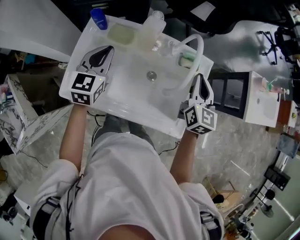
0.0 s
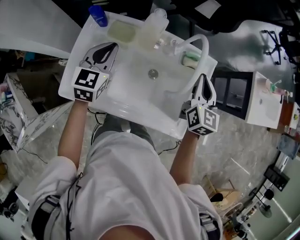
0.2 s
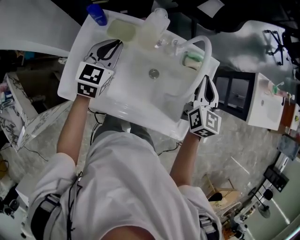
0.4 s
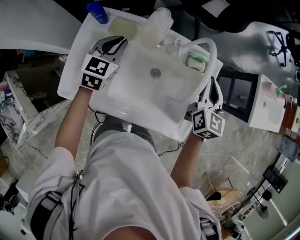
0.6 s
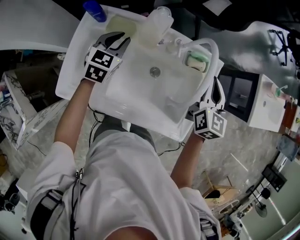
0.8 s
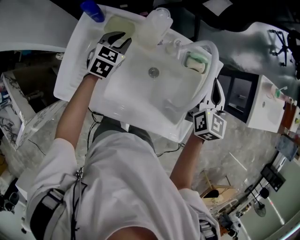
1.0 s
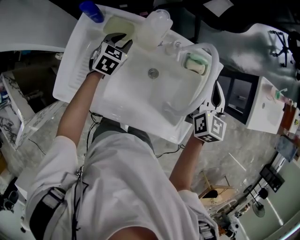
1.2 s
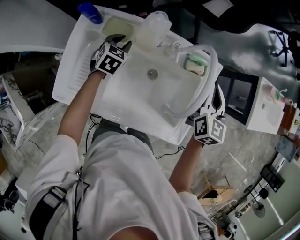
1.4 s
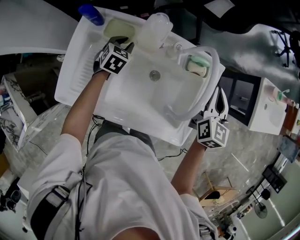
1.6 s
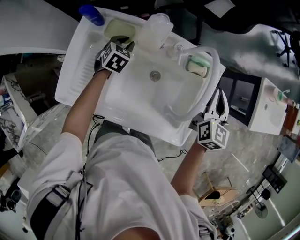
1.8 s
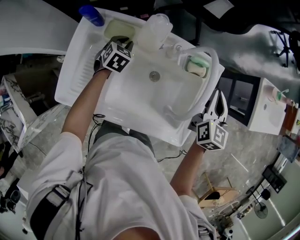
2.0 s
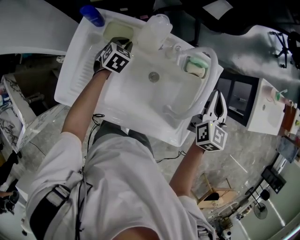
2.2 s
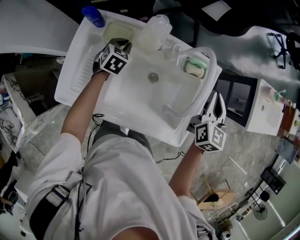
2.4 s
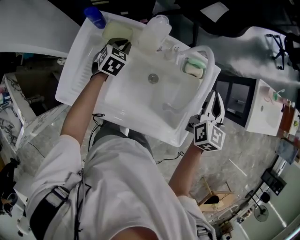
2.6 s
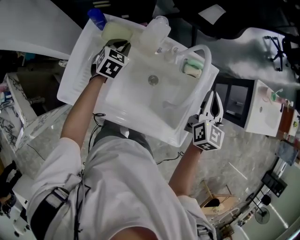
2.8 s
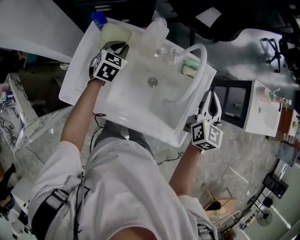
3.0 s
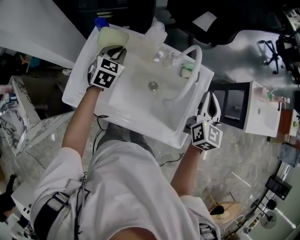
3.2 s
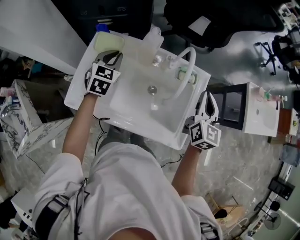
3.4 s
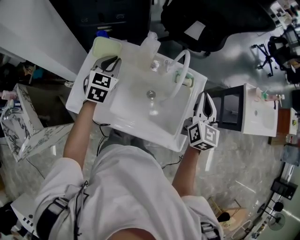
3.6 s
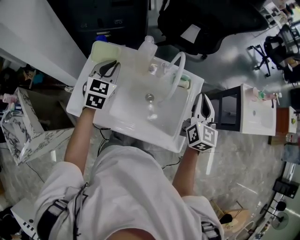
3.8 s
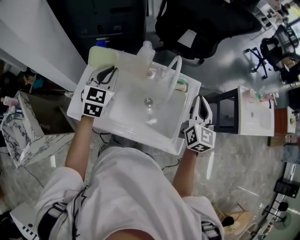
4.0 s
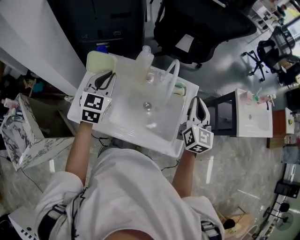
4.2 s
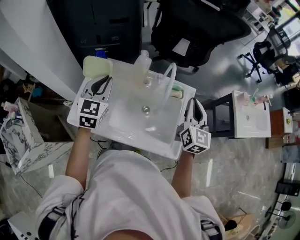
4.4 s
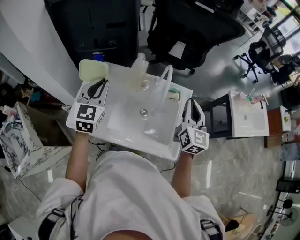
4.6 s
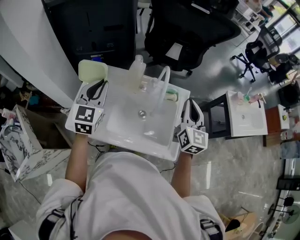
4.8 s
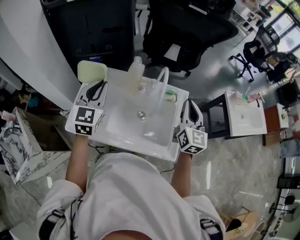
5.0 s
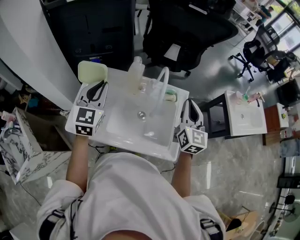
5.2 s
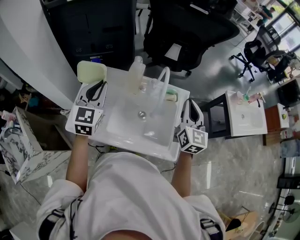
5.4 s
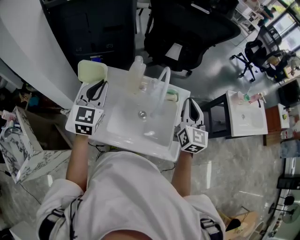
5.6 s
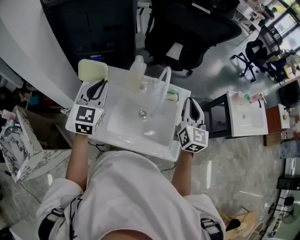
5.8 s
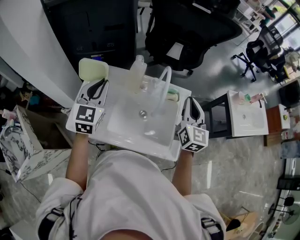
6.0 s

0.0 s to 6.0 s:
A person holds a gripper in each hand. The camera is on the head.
0.0 to 1.6 s: The right gripper ends up roughly 10 cm from where it was; the left gripper shifts approximately 25 cm downward and forward, rotates approximately 30 degrees, and opens up.
1.6 to 3.0 s: The right gripper moves approximately 5 cm. The left gripper is displaced upward by about 10 cm.
3.0 to 4.4 s: The left gripper goes about 25 cm upward and backward, and changes its angle by roughly 20 degrees; the right gripper heads upward, covering some 10 cm.
4.4 to 6.0 s: The grippers stay close to where they were, moving slightly.

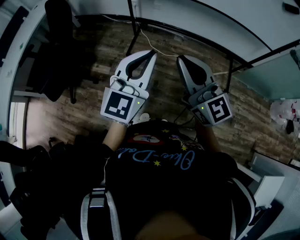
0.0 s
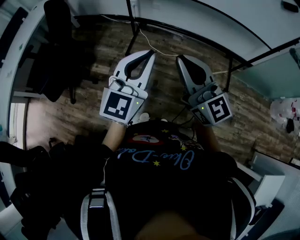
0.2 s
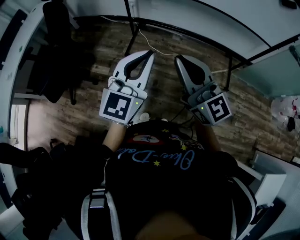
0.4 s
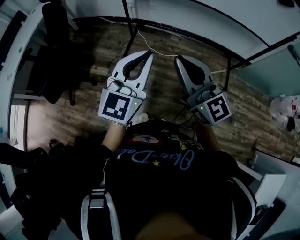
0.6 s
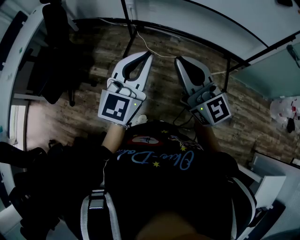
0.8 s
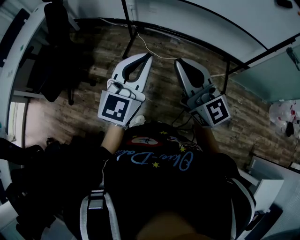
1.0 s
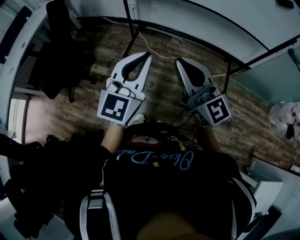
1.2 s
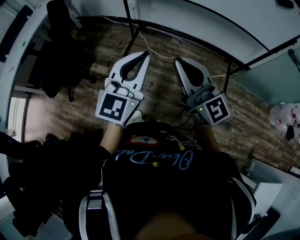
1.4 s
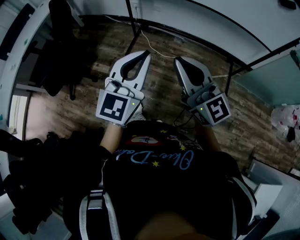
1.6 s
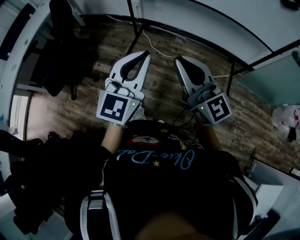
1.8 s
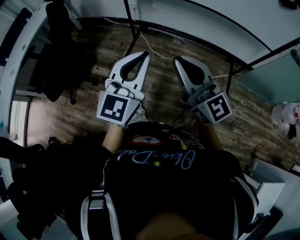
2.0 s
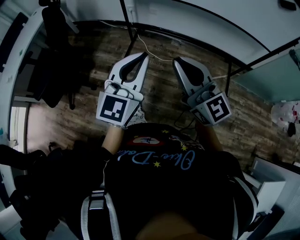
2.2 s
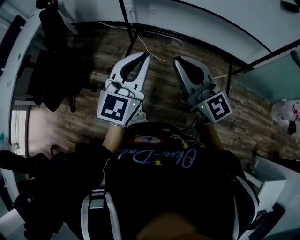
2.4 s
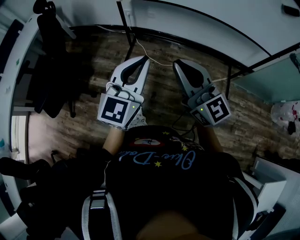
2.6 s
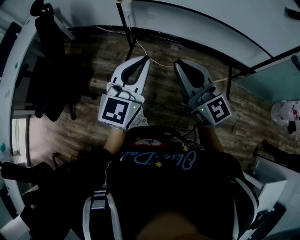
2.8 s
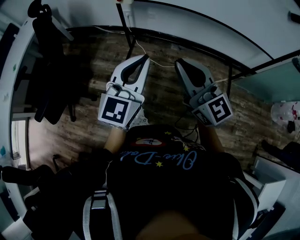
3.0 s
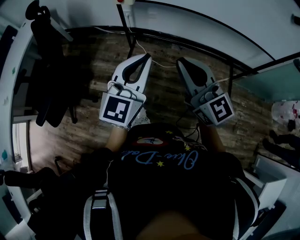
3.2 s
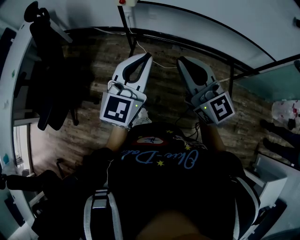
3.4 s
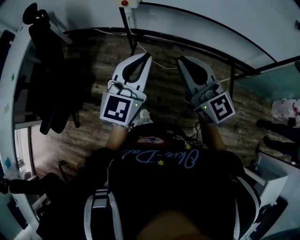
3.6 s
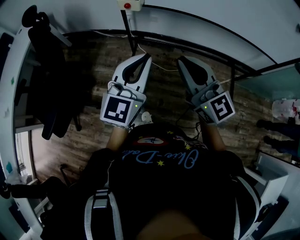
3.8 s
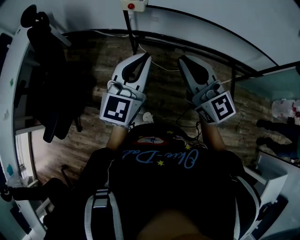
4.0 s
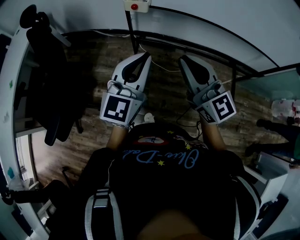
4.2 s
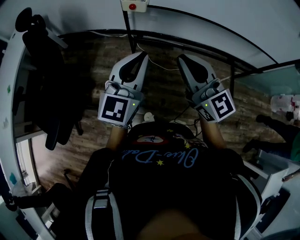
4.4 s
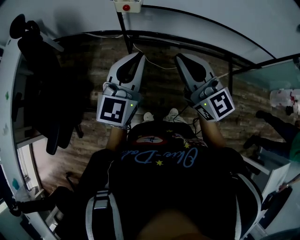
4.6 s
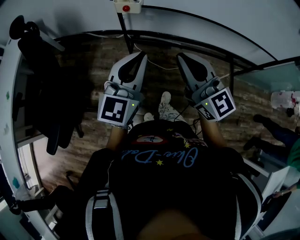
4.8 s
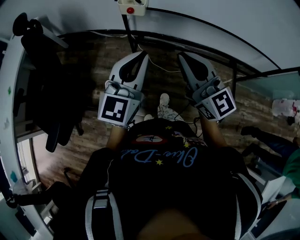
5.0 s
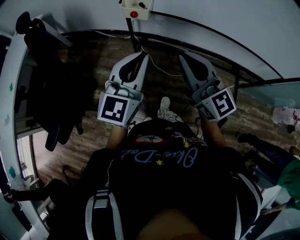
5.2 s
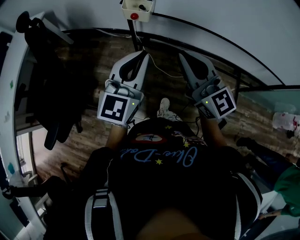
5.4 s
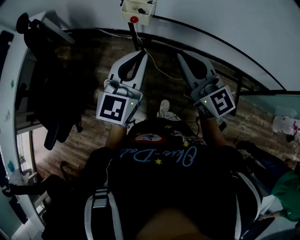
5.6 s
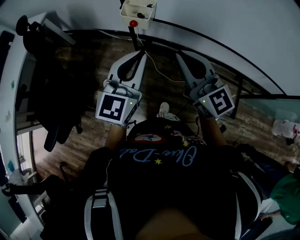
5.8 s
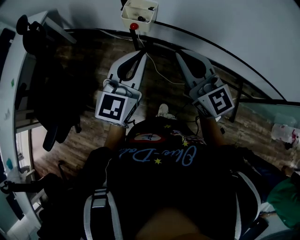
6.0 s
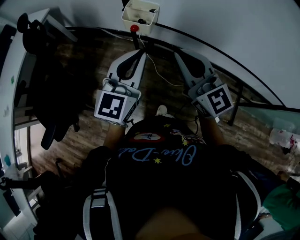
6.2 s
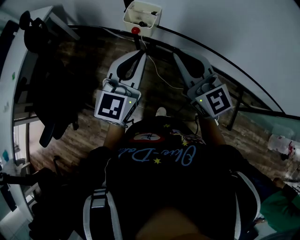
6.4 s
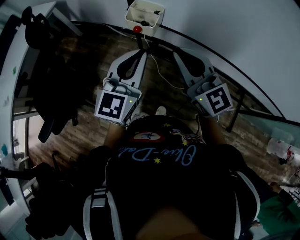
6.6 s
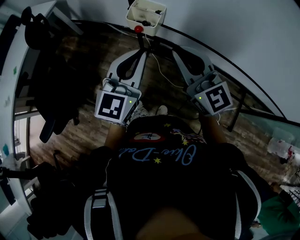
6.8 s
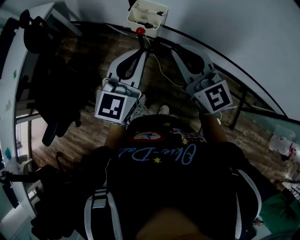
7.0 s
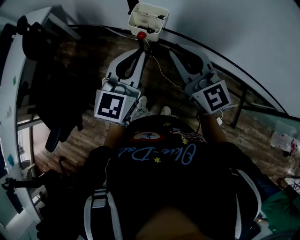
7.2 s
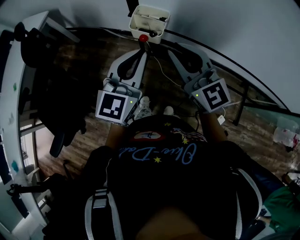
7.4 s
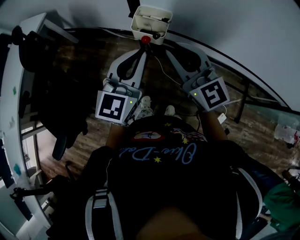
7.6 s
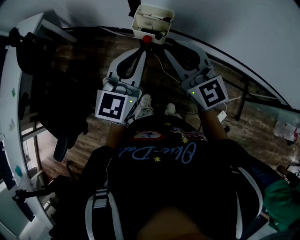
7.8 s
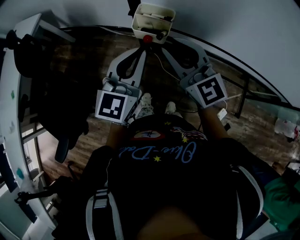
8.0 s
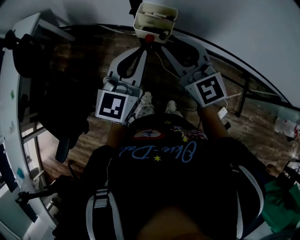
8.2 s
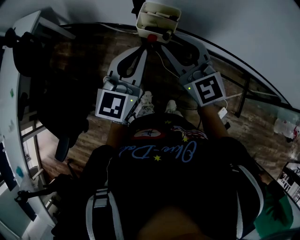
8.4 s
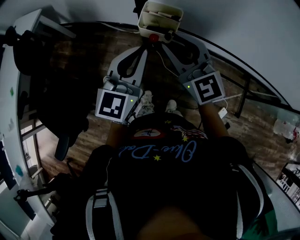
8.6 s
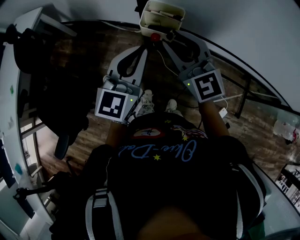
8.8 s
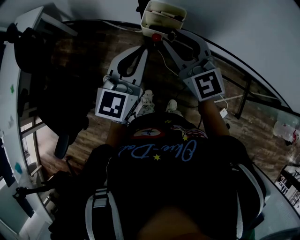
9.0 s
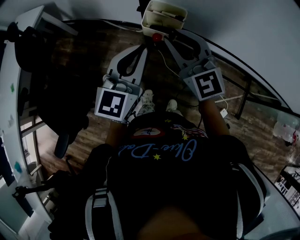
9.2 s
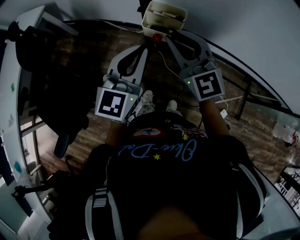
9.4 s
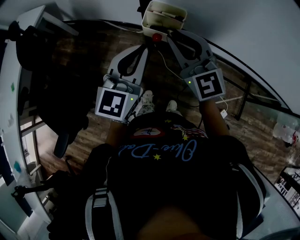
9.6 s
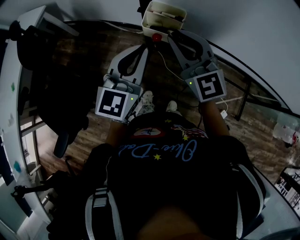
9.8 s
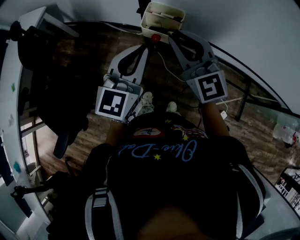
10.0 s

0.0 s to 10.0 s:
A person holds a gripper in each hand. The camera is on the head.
0.0 to 1.4 s: Both grippers move to the right, approximately 5 cm.
1.4 to 2.8 s: Both grippers travel together forward, some 10 cm.
2.8 to 4.2 s: Both grippers move forward and to the left, roughly 15 cm.
4.2 to 5.8 s: The grippers both shift forward by some 15 cm.
5.8 to 7.2 s: Both grippers travel together forward, some 10 cm.
7.2 to 8.6 s: The left gripper moves roughly 5 cm. Meanwhile the right gripper is displaced forward and to the left by about 10 cm.
8.6 to 10.0 s: The grippers stay close to where they were, moving slightly.

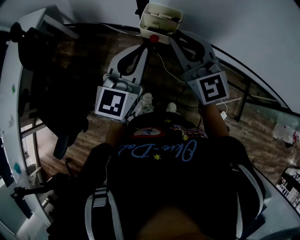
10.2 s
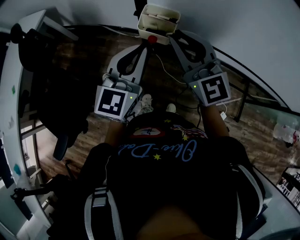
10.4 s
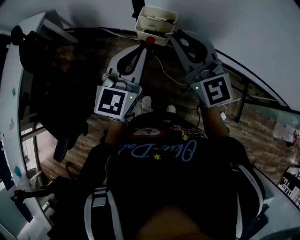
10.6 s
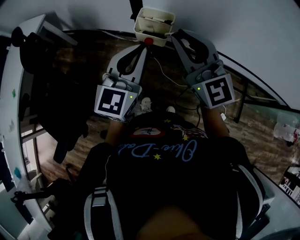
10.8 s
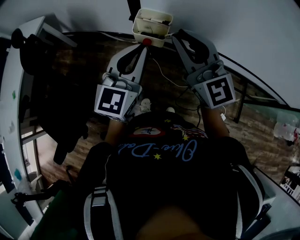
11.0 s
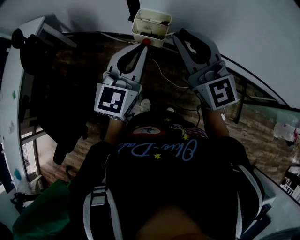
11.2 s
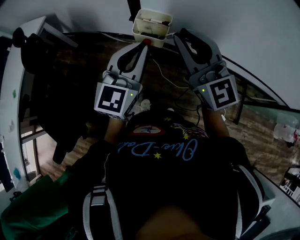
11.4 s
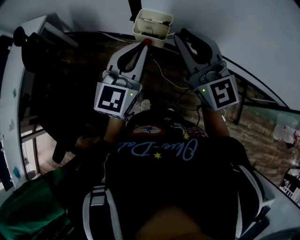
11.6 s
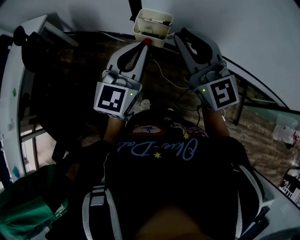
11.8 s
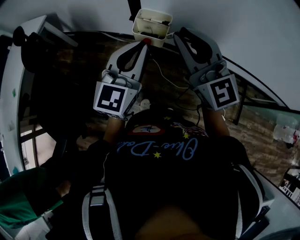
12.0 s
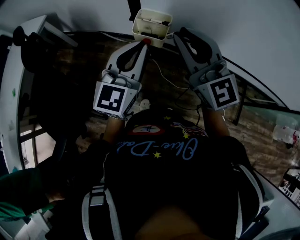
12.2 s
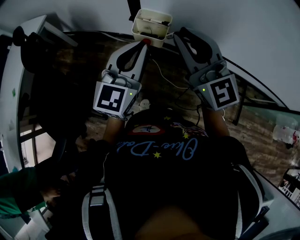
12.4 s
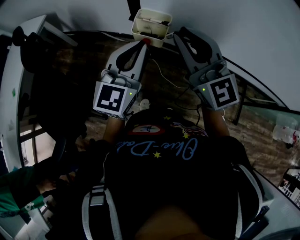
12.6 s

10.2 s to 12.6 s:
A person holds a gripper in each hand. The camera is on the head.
10.2 to 11.4 s: The right gripper goes some 5 cm upward.
11.4 to 12.6 s: Both grippers stay about where they are.

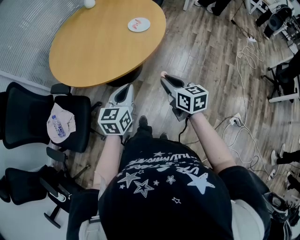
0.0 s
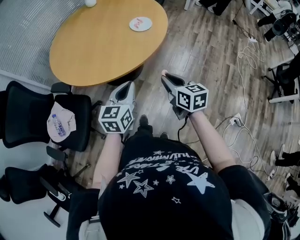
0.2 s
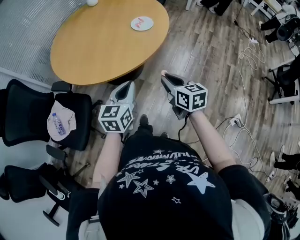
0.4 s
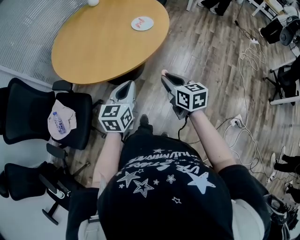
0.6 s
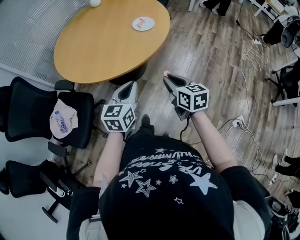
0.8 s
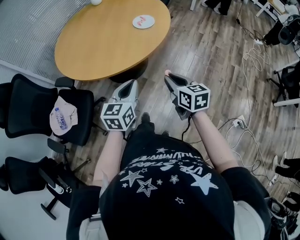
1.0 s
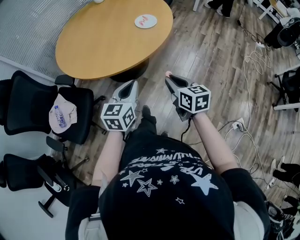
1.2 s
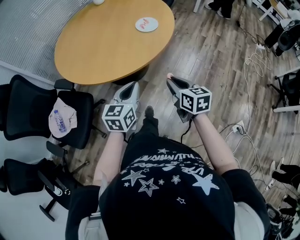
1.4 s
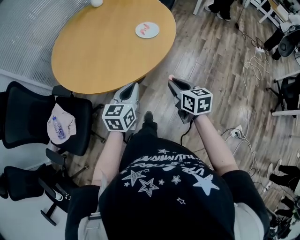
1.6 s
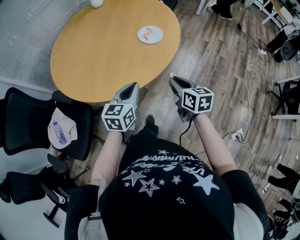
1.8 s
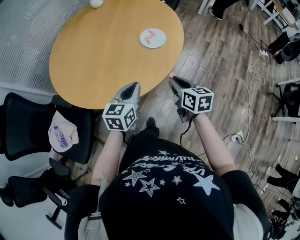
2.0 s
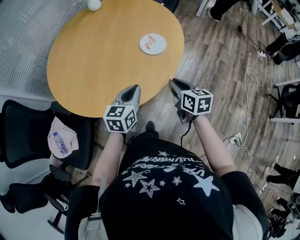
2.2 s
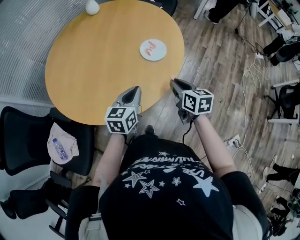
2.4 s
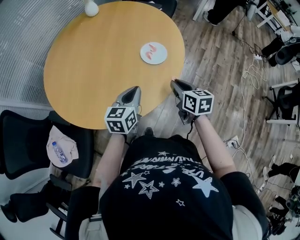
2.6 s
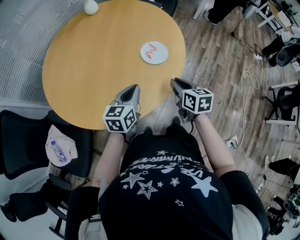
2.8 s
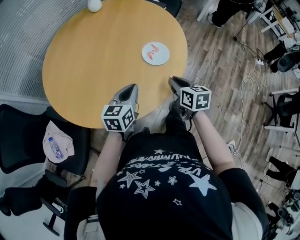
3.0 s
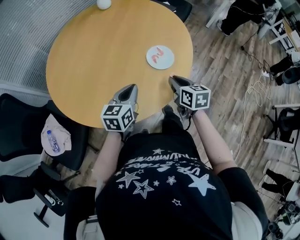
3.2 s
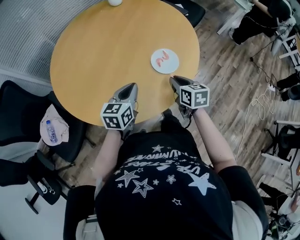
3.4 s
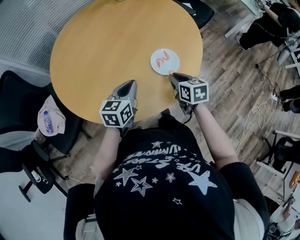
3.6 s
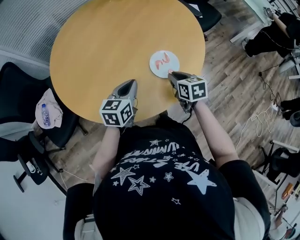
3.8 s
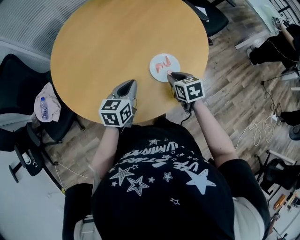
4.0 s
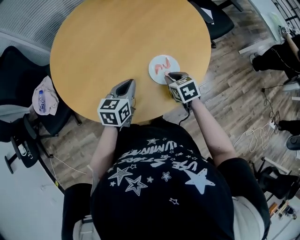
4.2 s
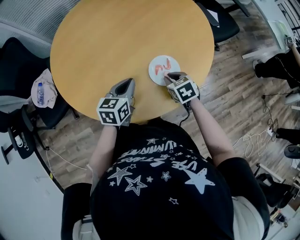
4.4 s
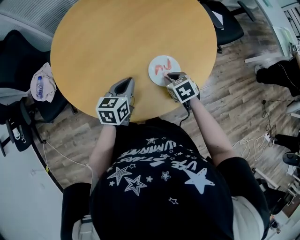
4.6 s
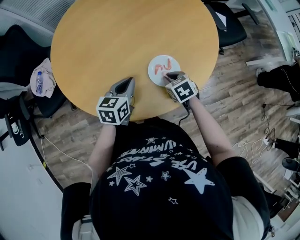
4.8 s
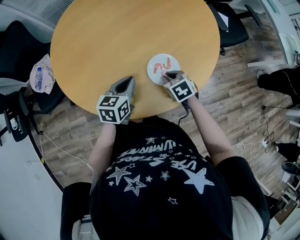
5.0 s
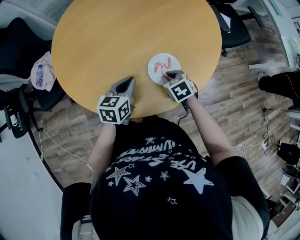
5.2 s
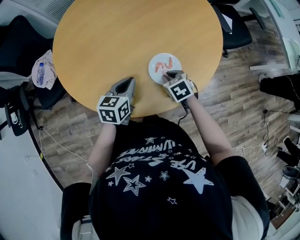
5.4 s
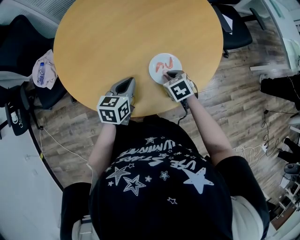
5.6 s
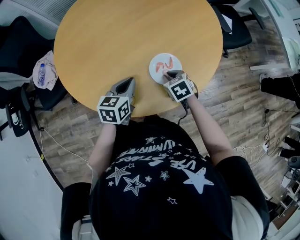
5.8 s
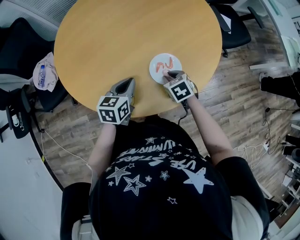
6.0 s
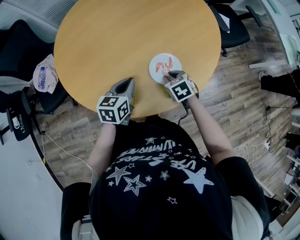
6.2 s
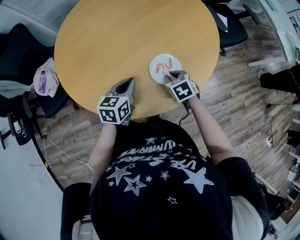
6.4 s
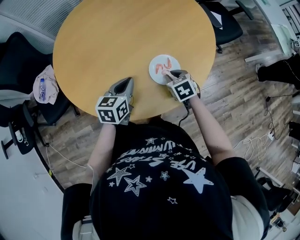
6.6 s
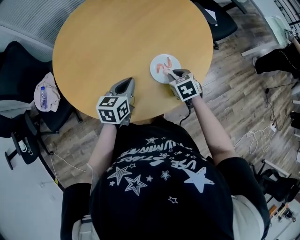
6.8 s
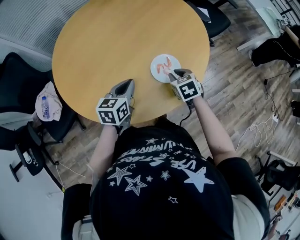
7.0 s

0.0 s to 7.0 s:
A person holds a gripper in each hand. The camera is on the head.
0.0 to 1.4 s: The grippers move only a little.
1.4 to 2.8 s: The grippers both shift forward by roughly 25 cm.
2.8 to 4.2 s: The left gripper moves approximately 10 cm, and changes its angle by some 30 degrees. Meanwhile the right gripper ends up some 20 cm from where it was, and changes its angle by about 50 degrees.
4.2 to 5.6 s: The grippers make only small movements.
5.6 to 7.0 s: The right gripper heads upward, covering roughly 5 cm, and rotates some 20 degrees.
